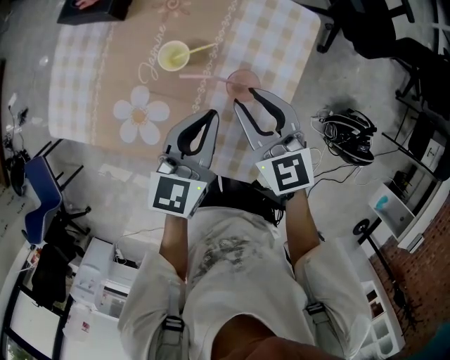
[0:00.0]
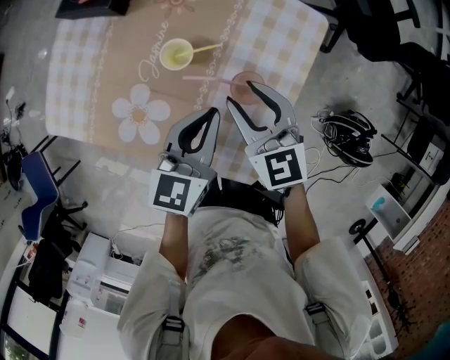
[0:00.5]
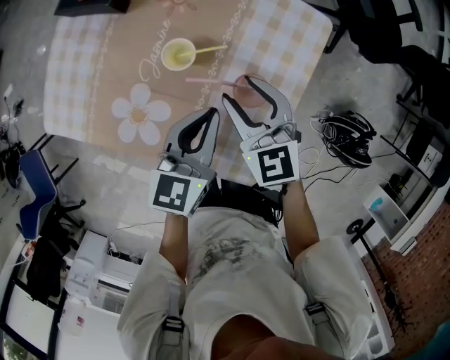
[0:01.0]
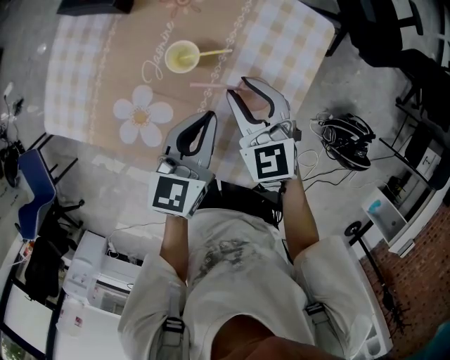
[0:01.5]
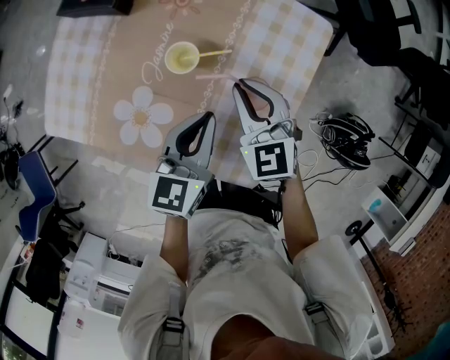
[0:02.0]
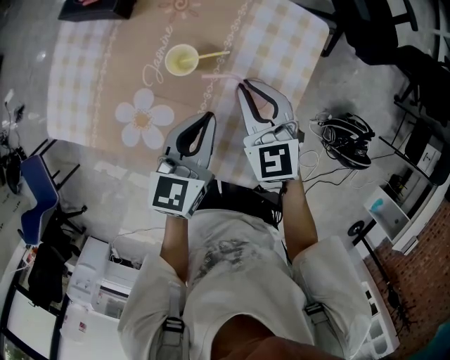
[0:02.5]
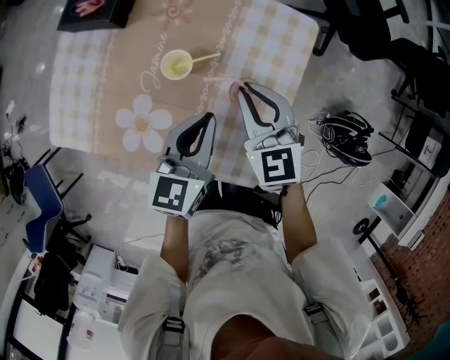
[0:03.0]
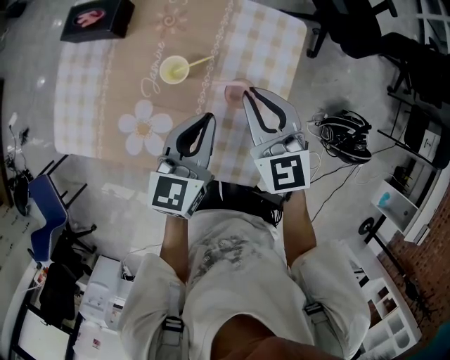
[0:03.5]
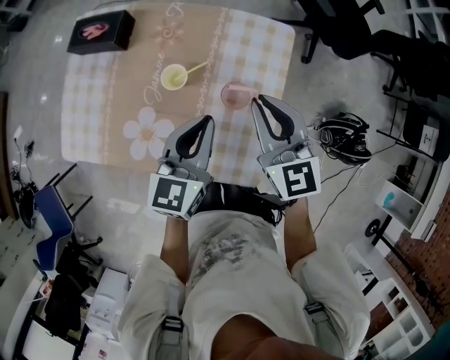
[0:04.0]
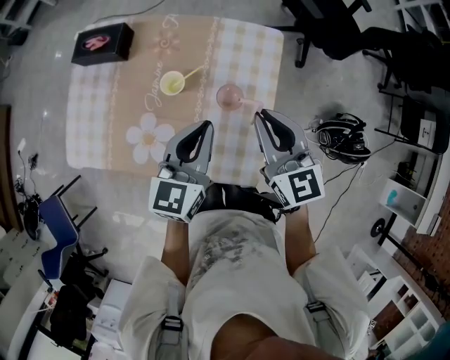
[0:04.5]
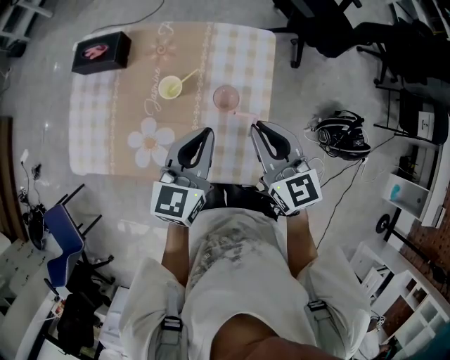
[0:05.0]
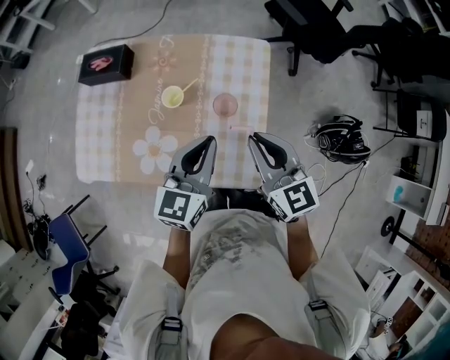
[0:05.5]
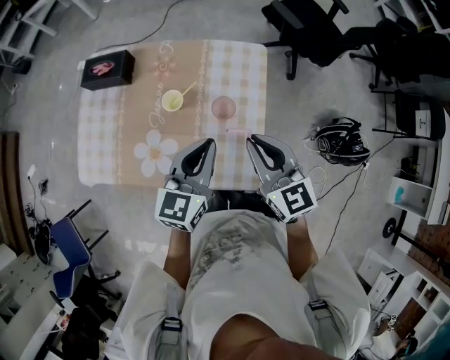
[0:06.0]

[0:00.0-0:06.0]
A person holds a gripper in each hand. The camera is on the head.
0:00.0 to 0:02.0: The right gripper goes approximately 5 cm downward, and closes its fingers, while the left gripper ends up approximately 5 cm from where it was.
0:02.0 to 0:04.0: The left gripper is displaced upward by some 10 cm, while the right gripper moves upward and to the right, roughly 15 cm, and rotates some 20 degrees.
0:04.0 to 0:06.0: The left gripper travels backward and upward by approximately 10 cm. Meanwhile the right gripper shifts about 10 cm backward.

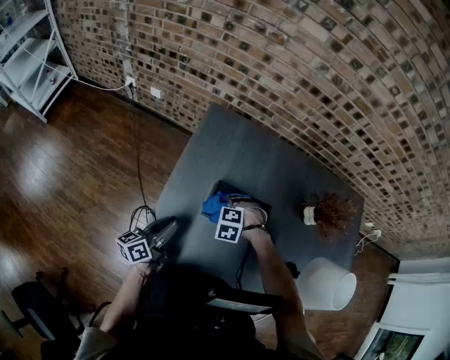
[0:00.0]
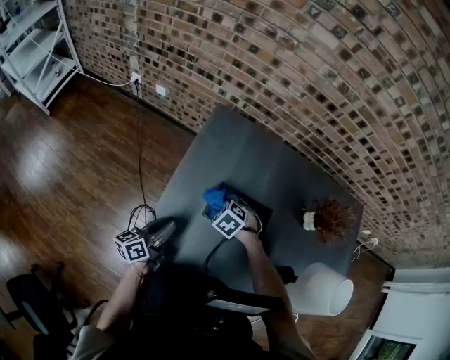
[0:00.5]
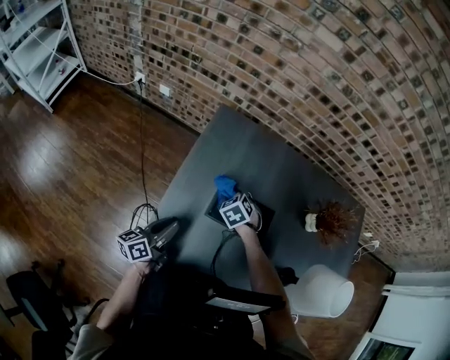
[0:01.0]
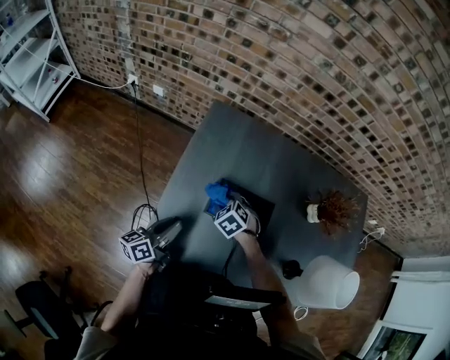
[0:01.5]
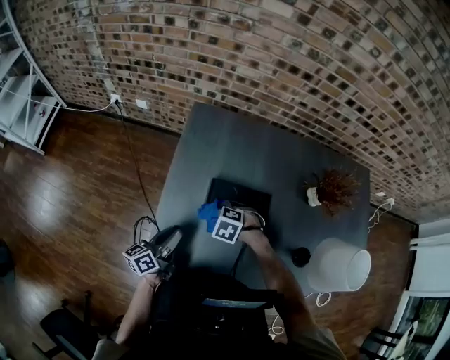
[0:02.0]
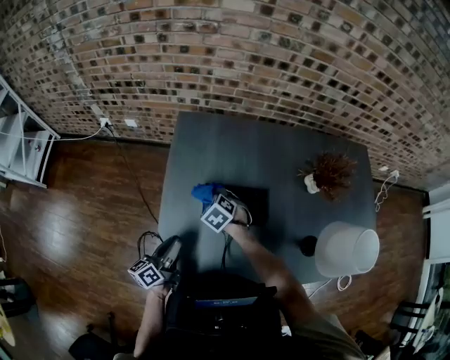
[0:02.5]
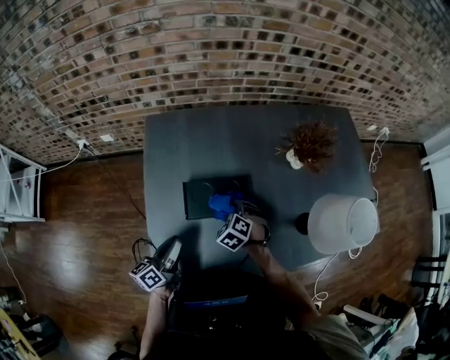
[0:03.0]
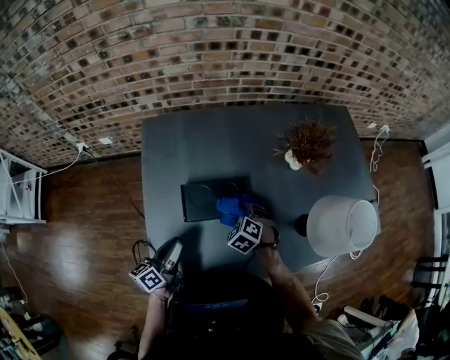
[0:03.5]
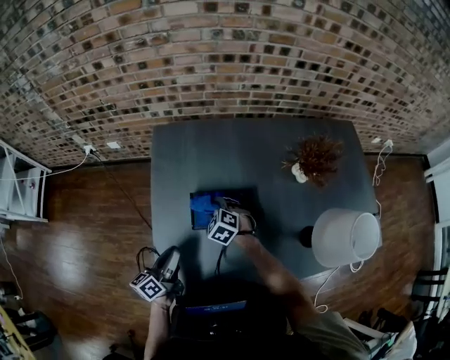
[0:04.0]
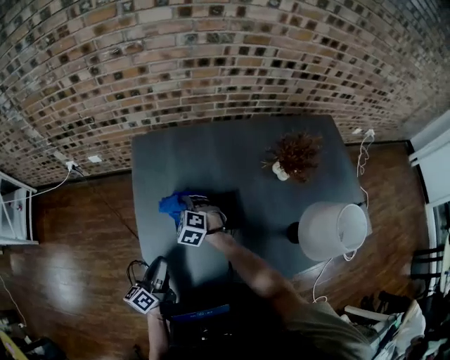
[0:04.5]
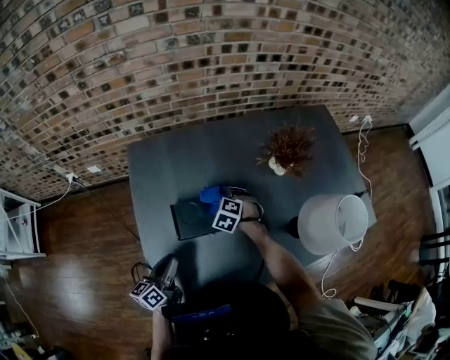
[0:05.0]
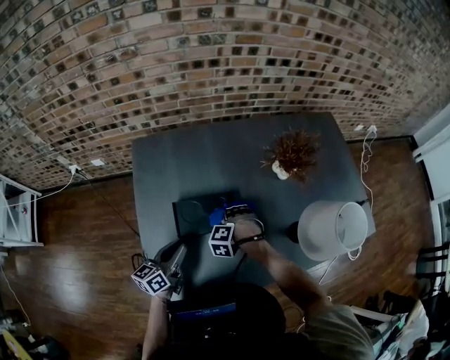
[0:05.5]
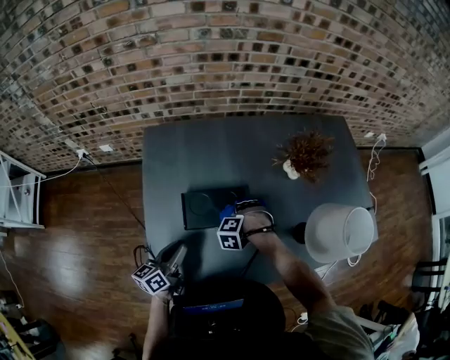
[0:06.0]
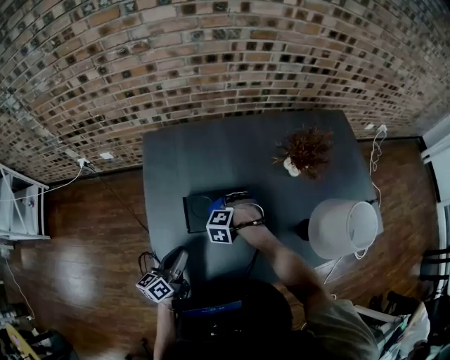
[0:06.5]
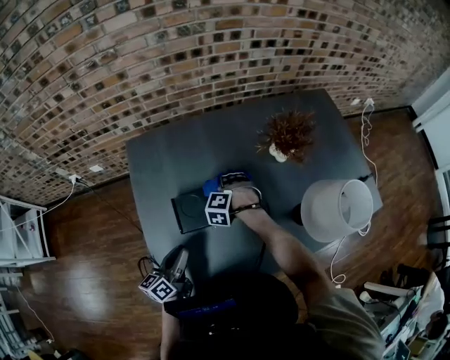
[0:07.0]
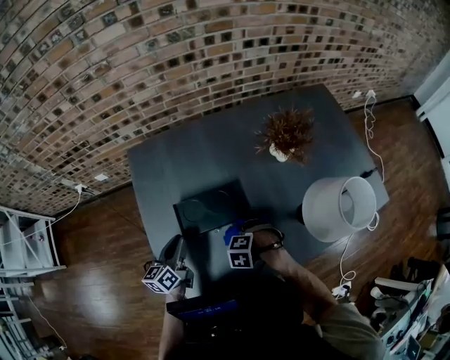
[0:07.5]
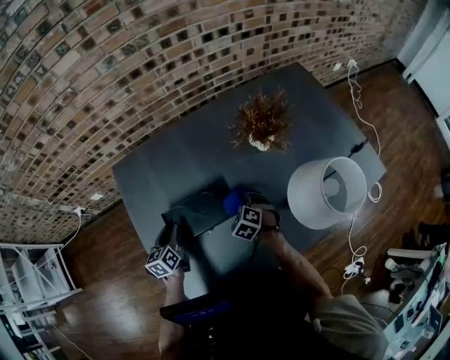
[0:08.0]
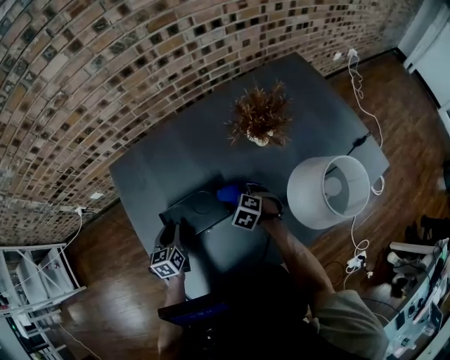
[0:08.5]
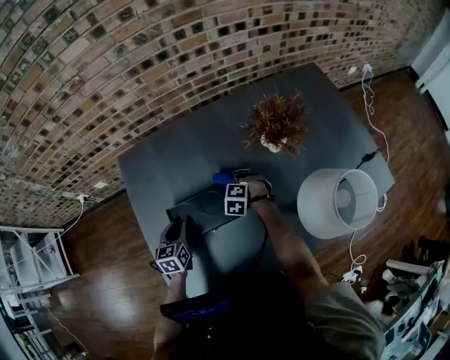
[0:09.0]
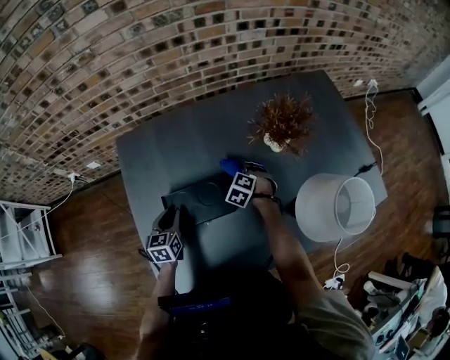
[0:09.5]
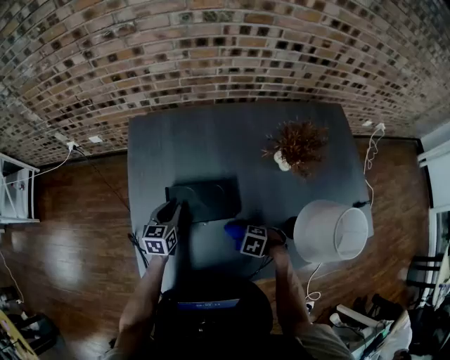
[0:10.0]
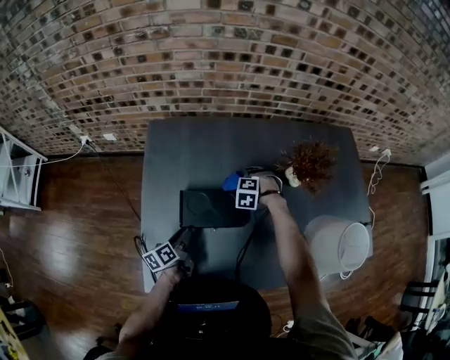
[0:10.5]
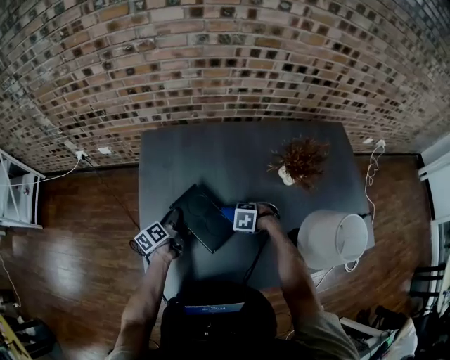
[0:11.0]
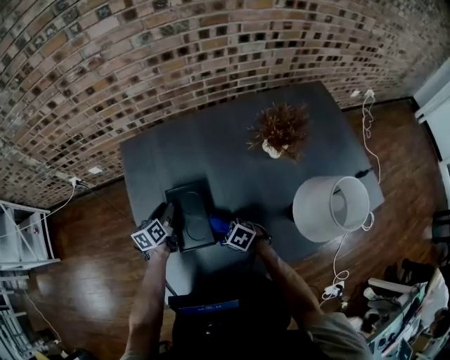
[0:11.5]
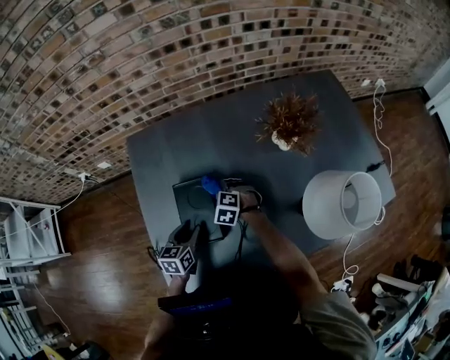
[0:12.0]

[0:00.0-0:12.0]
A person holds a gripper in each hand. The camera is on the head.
0:06.0 to 0:08.0: The left gripper changes place by roughly 15 cm, swivels some 30 degrees, and opens up.
0:10.0 to 0:12.0: The left gripper changes place by about 5 cm.

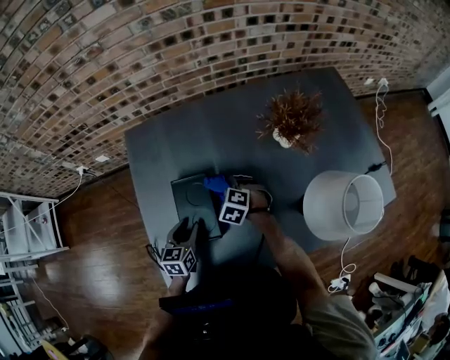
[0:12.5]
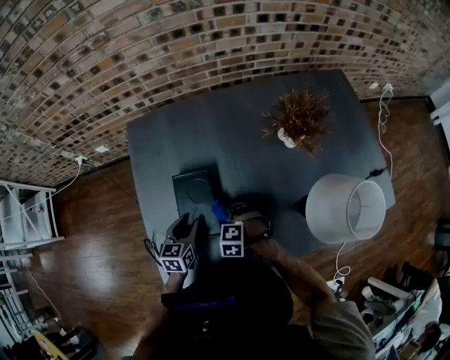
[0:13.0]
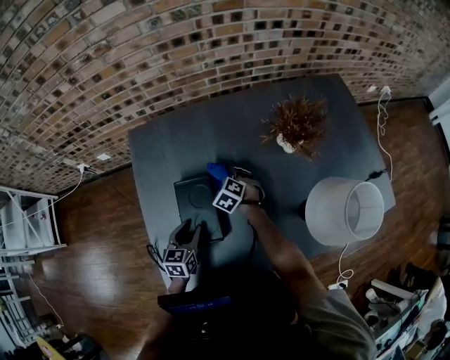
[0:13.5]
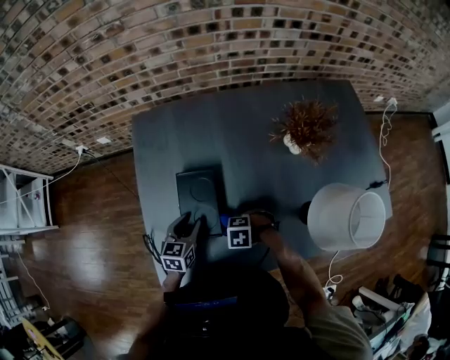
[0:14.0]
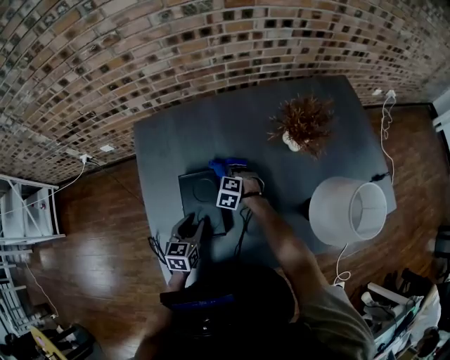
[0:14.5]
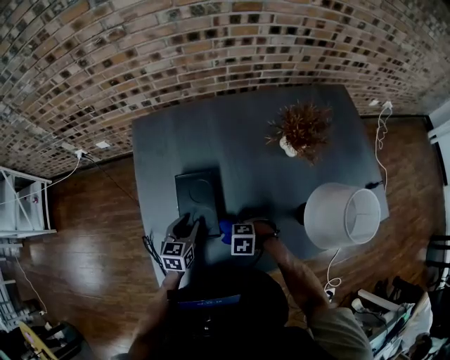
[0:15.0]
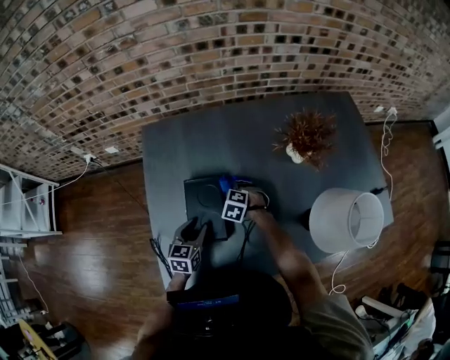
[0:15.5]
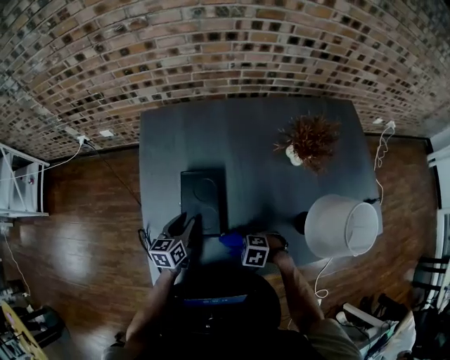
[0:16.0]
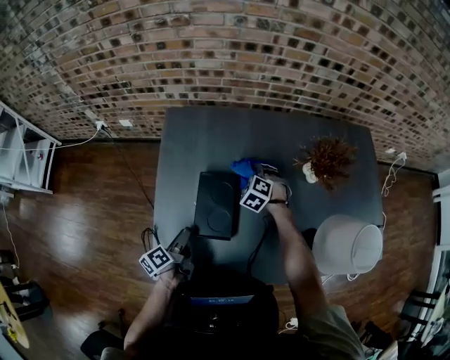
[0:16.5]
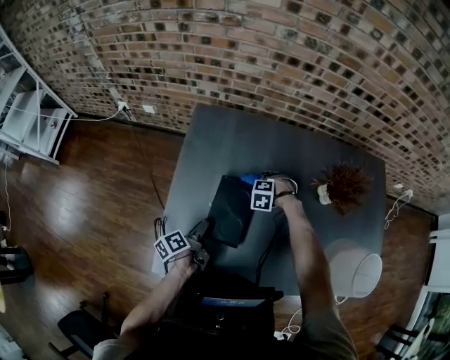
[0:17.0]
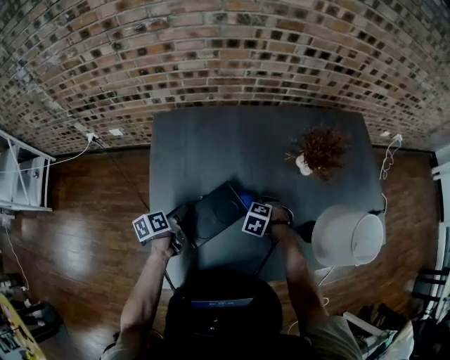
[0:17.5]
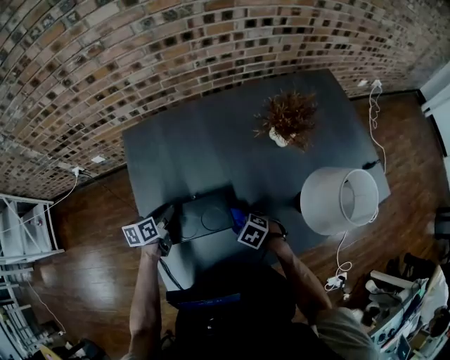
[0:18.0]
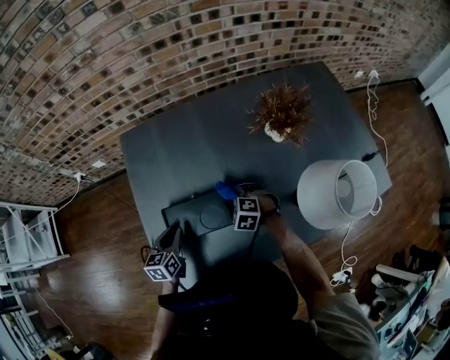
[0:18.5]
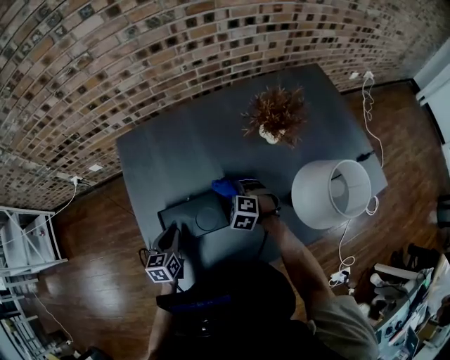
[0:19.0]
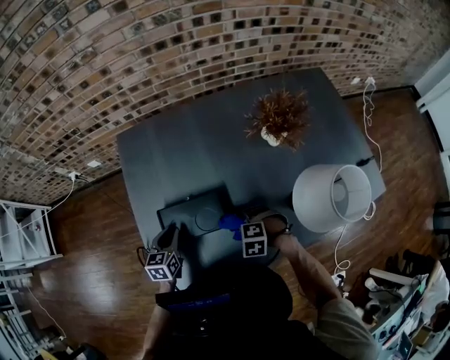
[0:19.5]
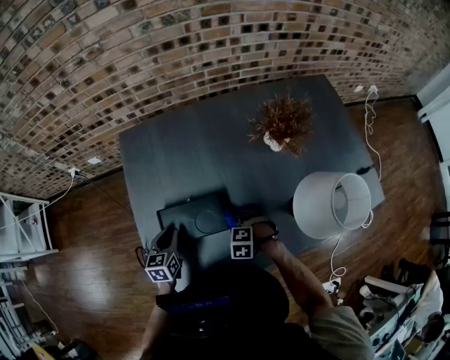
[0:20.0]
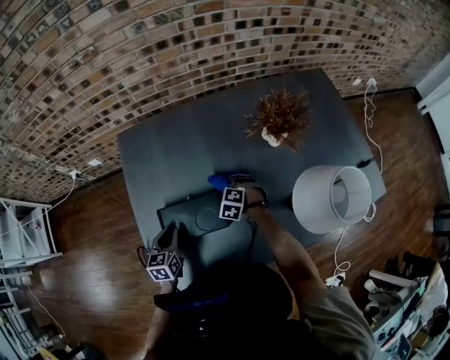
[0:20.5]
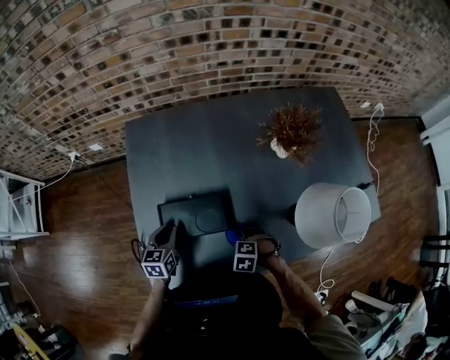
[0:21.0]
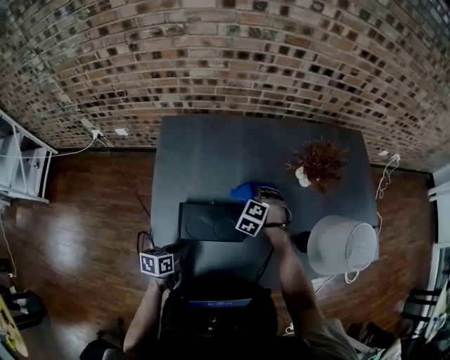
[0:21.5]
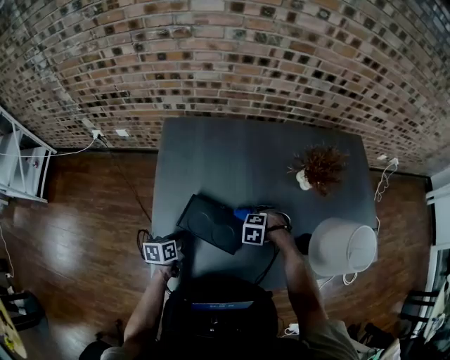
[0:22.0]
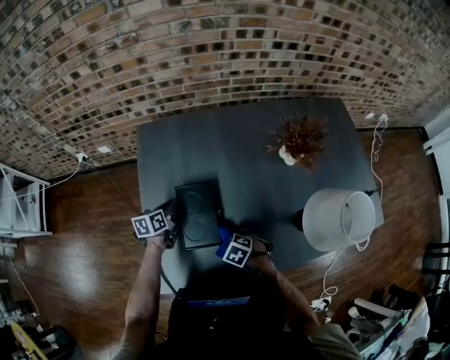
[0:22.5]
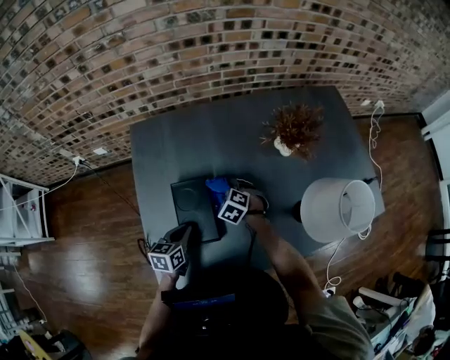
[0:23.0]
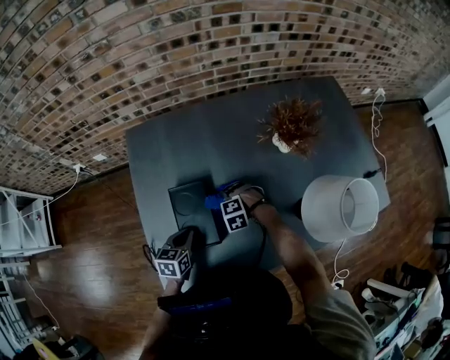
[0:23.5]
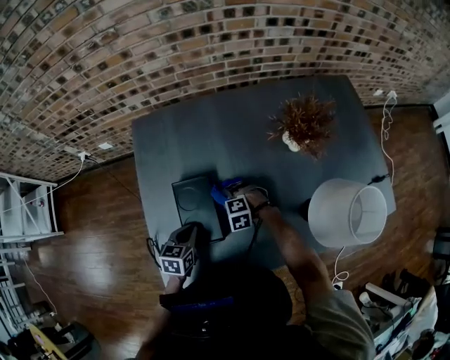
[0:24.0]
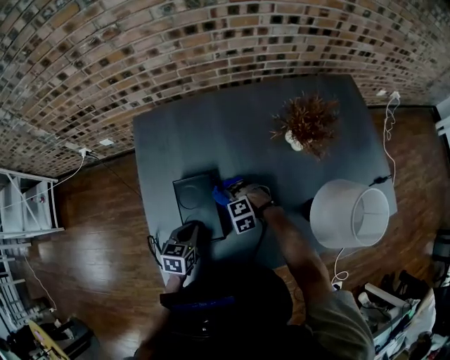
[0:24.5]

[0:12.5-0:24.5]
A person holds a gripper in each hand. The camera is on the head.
0:14.5 to 0:16.5: The left gripper changes place by some 10 cm, and rotates around the line of its fingers by approximately 60 degrees, counterclockwise from behind.
0:16.5 to 0:18.5: The left gripper twists about 50 degrees clockwise, seen from behind.
0:20.5 to 0:22.5: The left gripper moves about 10 cm, and rotates some 30 degrees.
0:22.5 to 0:24.5: The left gripper ends up about 15 cm from where it was, and rotates roughly 30 degrees.
